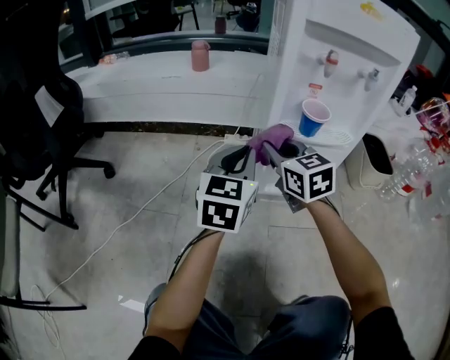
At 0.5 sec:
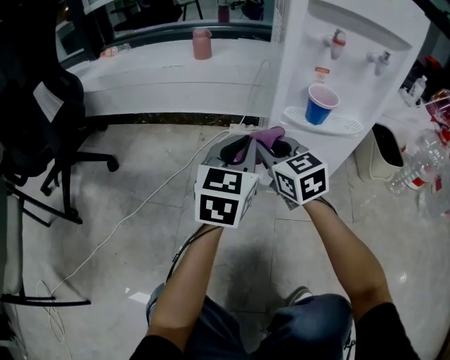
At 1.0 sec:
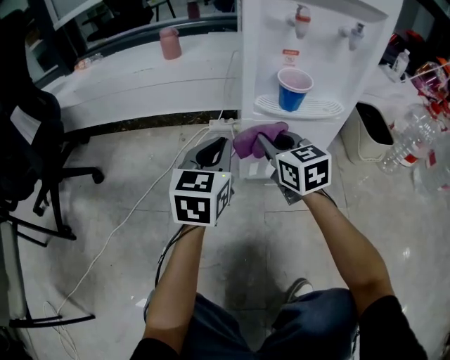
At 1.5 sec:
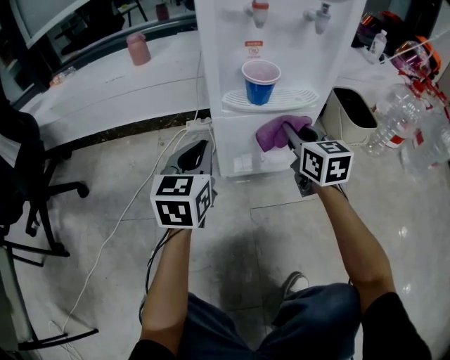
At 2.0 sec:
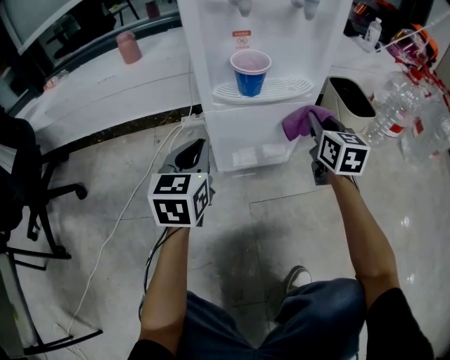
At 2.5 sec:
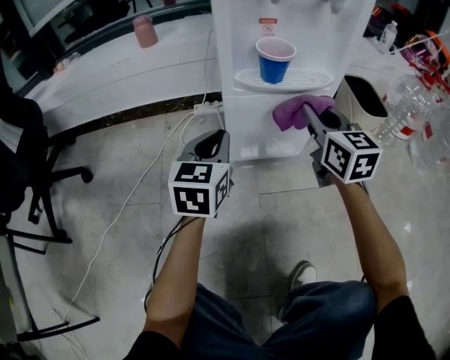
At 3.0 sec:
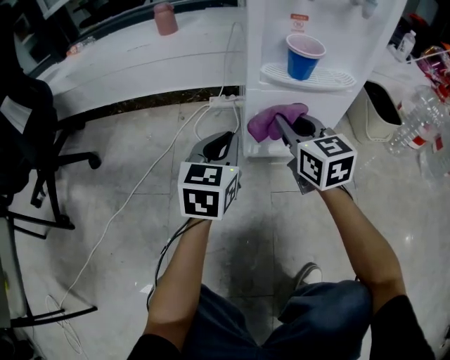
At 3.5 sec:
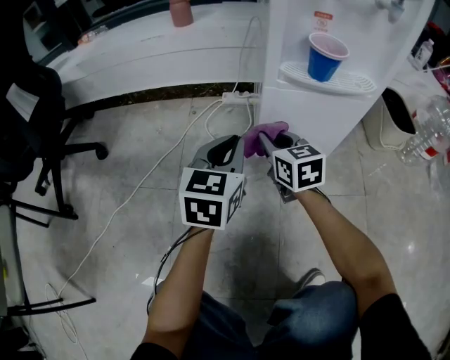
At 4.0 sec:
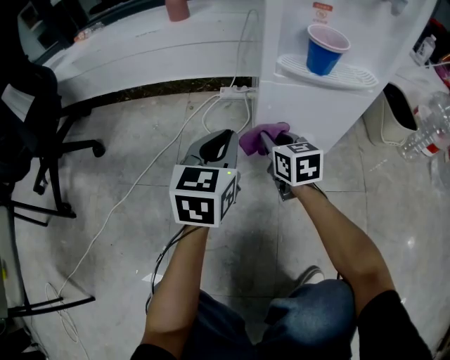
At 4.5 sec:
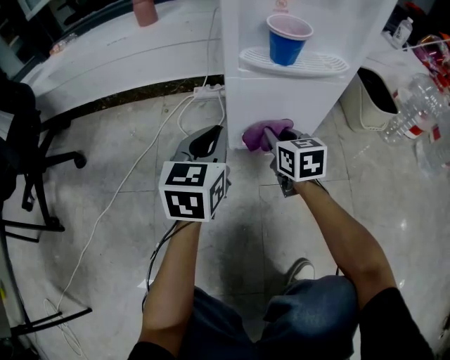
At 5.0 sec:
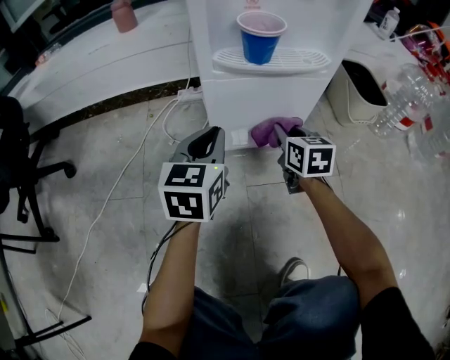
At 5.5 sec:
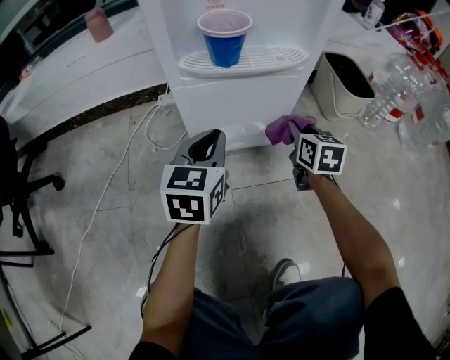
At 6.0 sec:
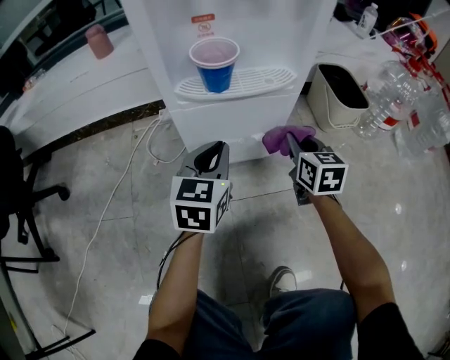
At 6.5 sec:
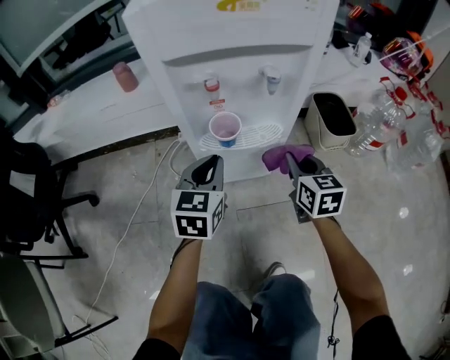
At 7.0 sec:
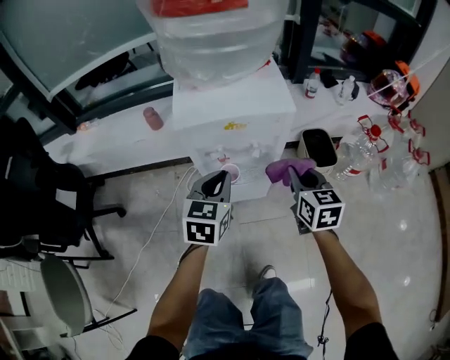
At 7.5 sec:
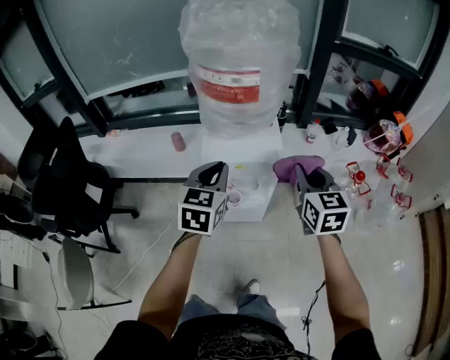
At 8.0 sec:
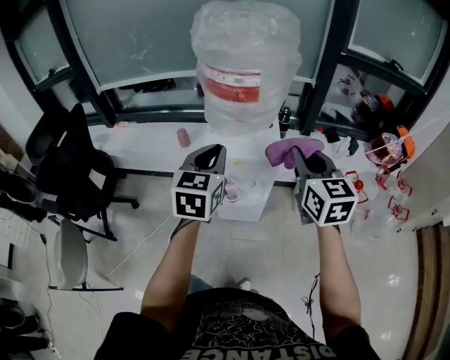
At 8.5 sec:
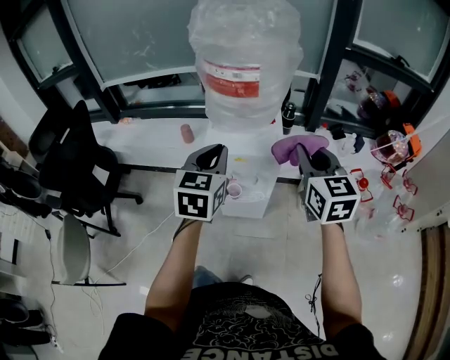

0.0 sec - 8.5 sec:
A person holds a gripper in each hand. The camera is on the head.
0.0 sec - 2.0 sec: The left gripper shifts approximately 10 cm downward; the right gripper shifts about 30 cm to the right, and swivels about 30 degrees.
2.0 sec - 4.0 sec: The right gripper goes about 30 cm to the left and downward, and turns by about 30 degrees. The left gripper moves to the left, about 5 cm.
4.0 sec - 6.5 sec: The left gripper moves upward and to the right, some 20 cm. Meanwhile the right gripper goes some 35 cm to the right and upward.
6.5 sec - 8.5 sec: Both grippers travel together upward, about 60 cm. The right gripper rotates about 20 degrees.

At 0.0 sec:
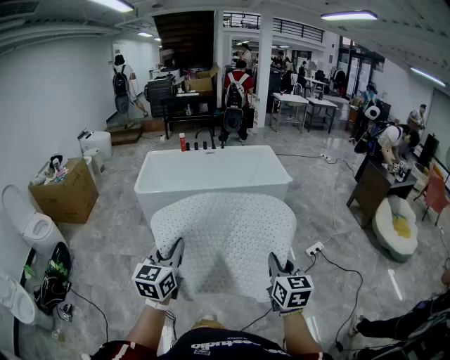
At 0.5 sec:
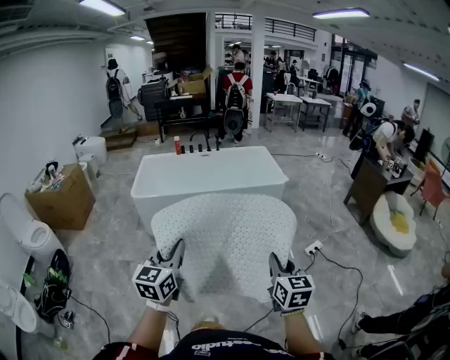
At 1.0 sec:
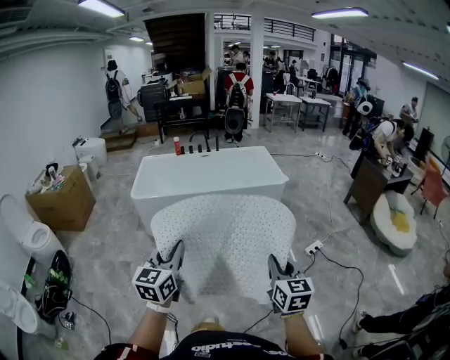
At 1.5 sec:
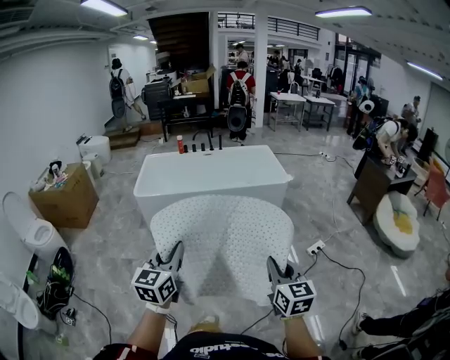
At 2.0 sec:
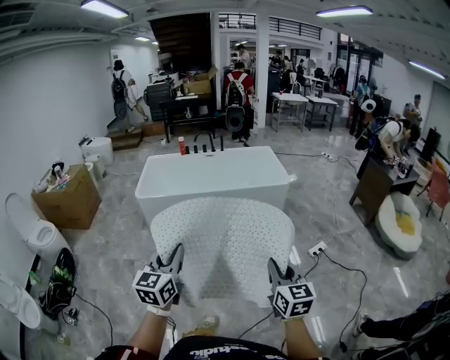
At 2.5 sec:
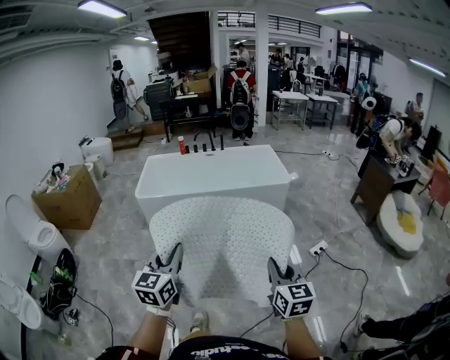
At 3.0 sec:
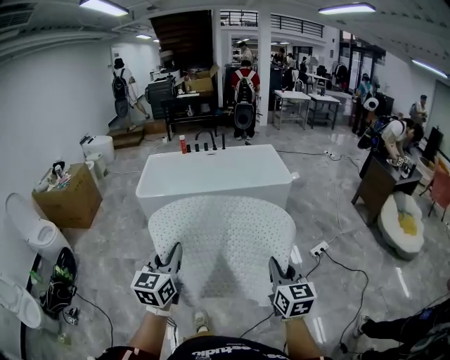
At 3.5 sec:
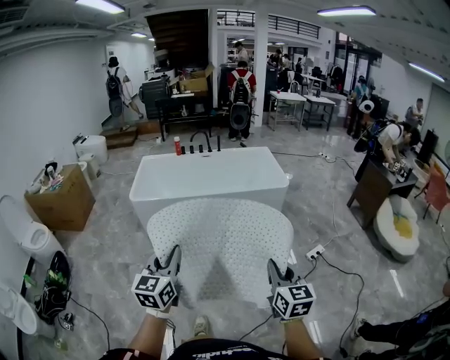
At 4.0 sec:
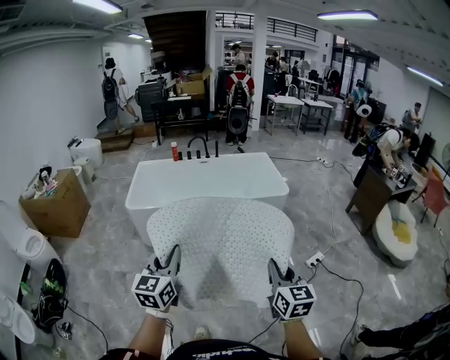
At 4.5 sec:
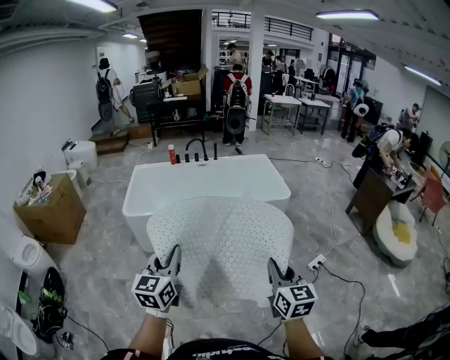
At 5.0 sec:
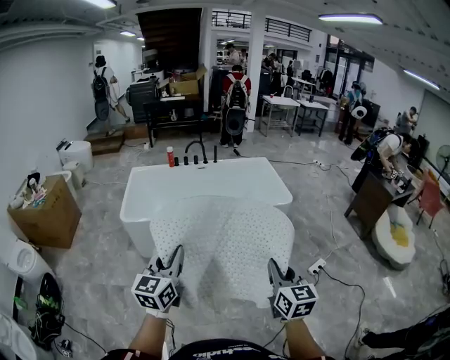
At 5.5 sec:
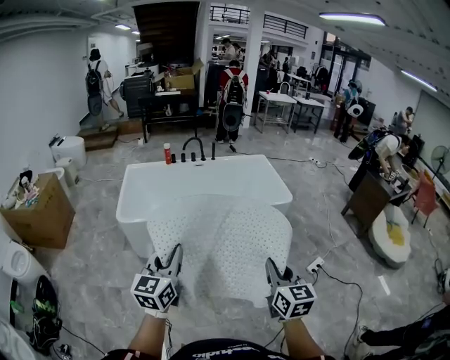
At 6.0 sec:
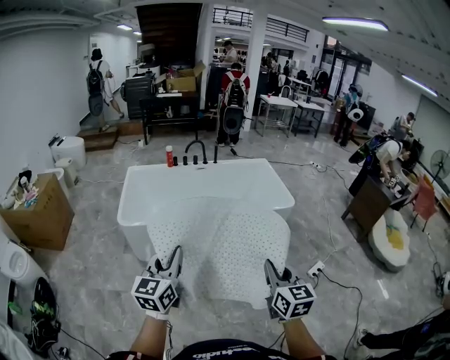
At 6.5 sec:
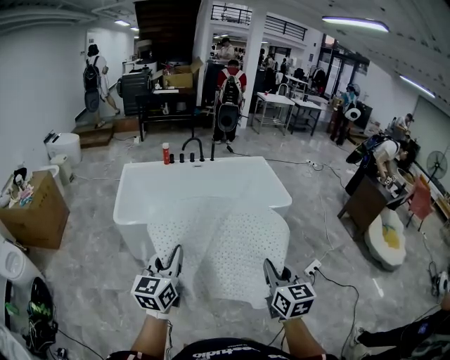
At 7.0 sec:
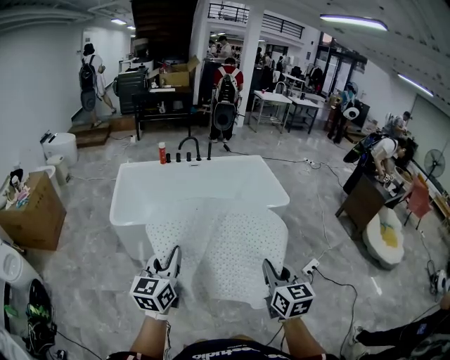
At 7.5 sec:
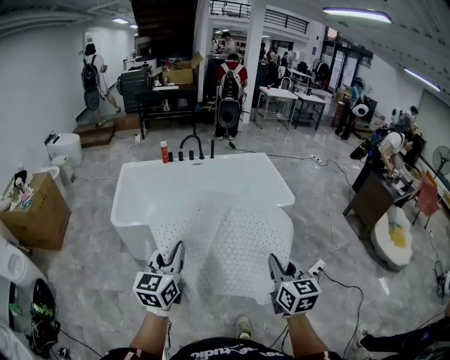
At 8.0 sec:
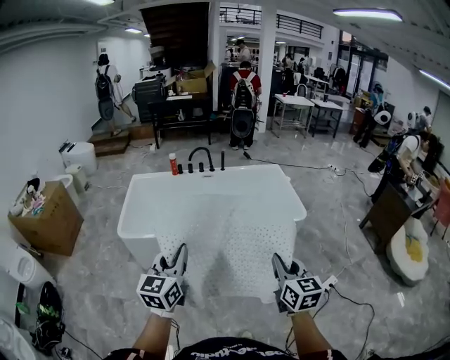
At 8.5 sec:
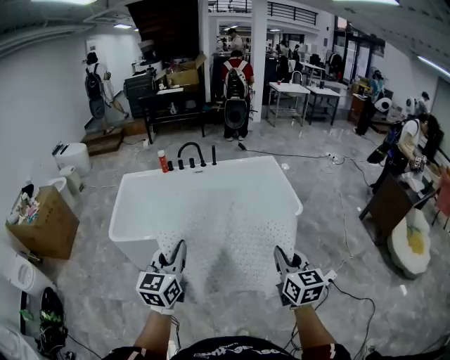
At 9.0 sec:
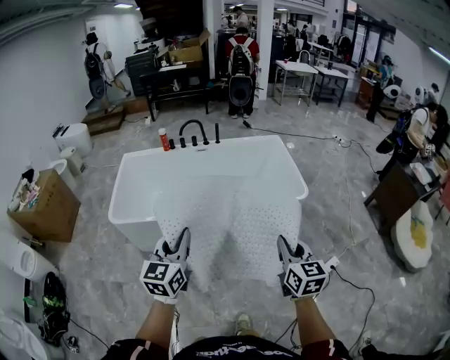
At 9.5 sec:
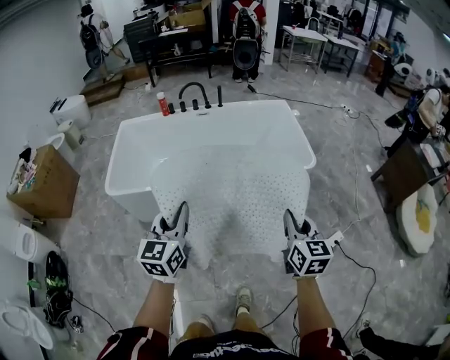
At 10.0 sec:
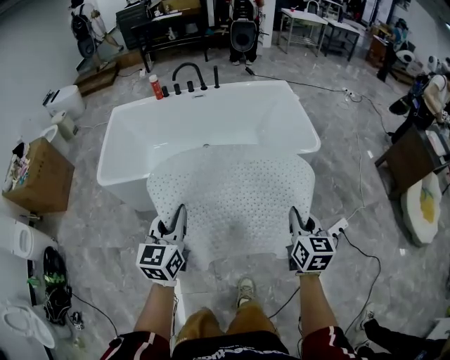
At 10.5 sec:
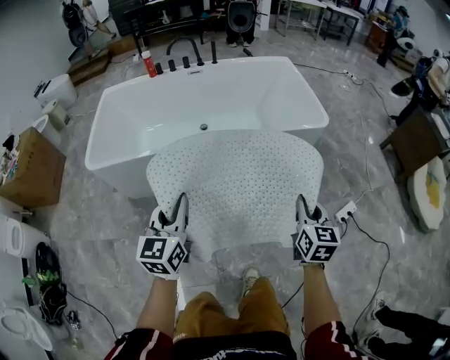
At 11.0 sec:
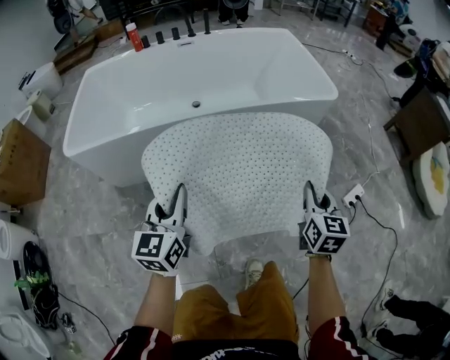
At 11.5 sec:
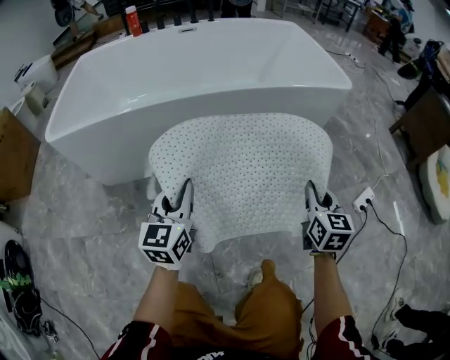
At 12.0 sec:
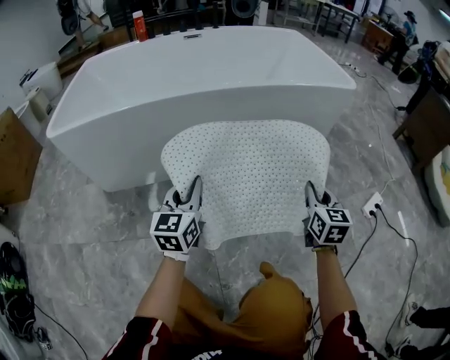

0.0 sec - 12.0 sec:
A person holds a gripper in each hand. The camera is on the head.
0.0 sec - 2.0 sec: There are only small adjustments of the grippers.
2.0 sec - 4.0 sec: Both grippers travel together forward, about 15 cm.
4.0 sec - 6.0 sec: The grippers both shift forward and to the left by roughly 25 cm.
6.0 sec - 8.0 sec: Both grippers travel together forward and to the right, some 20 cm.
8.0 sec - 10.0 sec: The left gripper travels downward and forward by some 20 cm, while the right gripper heads downward, forward and to the right, covering roughly 25 cm.
10.0 sec - 12.0 sec: Both grippers move downward, about 50 cm.

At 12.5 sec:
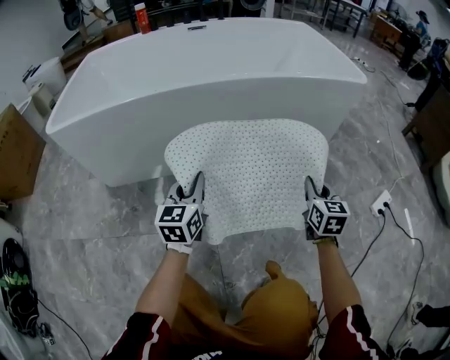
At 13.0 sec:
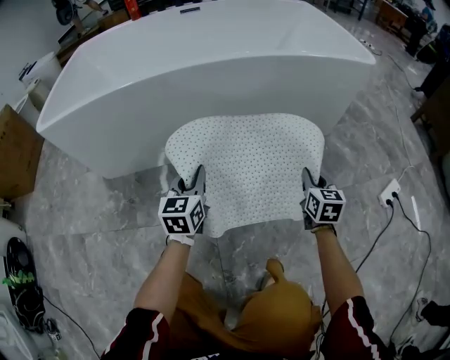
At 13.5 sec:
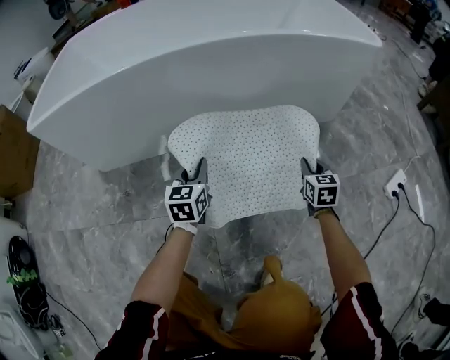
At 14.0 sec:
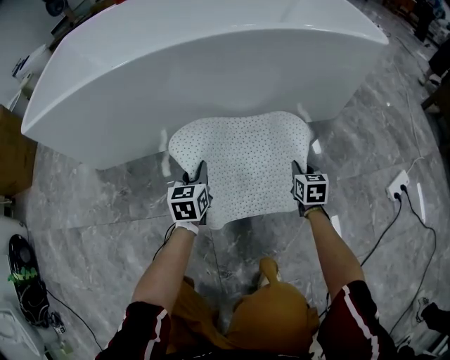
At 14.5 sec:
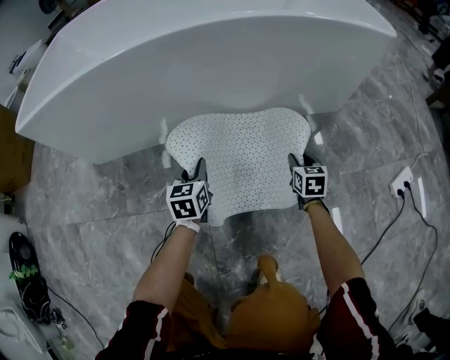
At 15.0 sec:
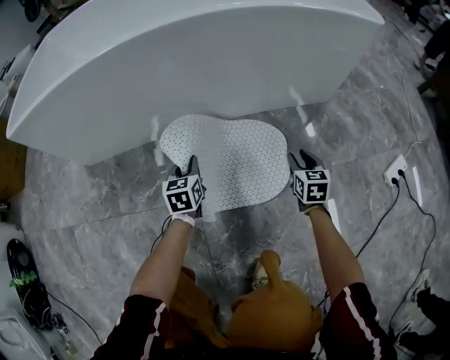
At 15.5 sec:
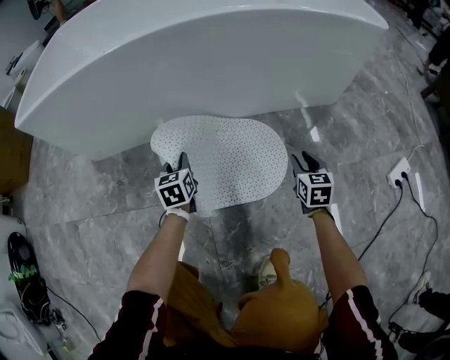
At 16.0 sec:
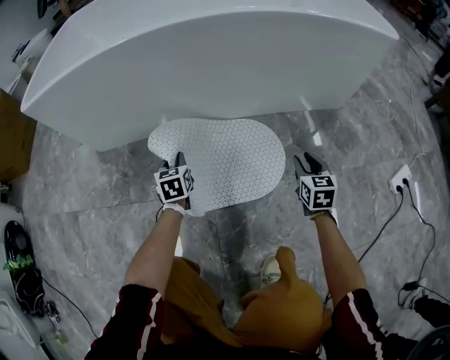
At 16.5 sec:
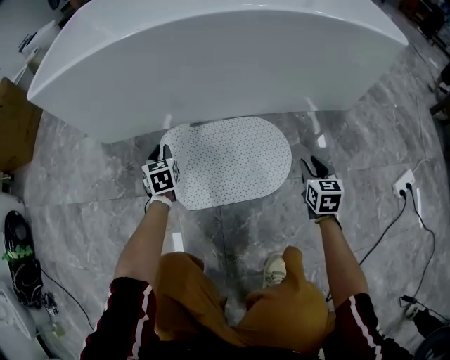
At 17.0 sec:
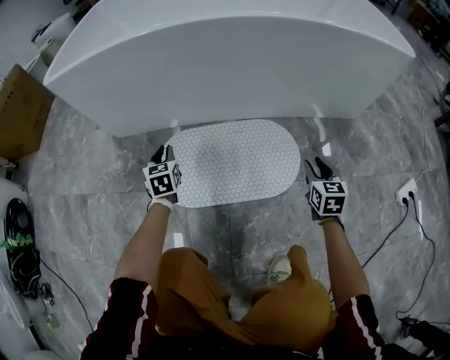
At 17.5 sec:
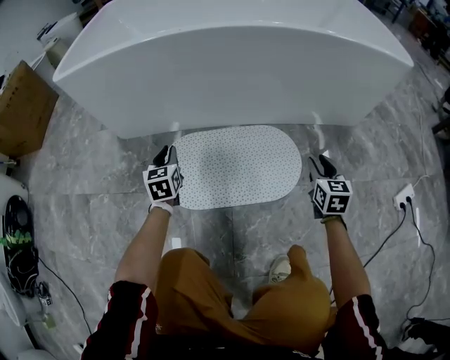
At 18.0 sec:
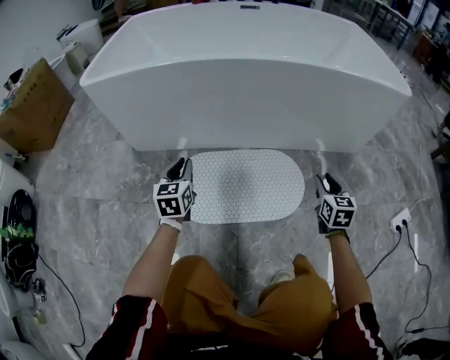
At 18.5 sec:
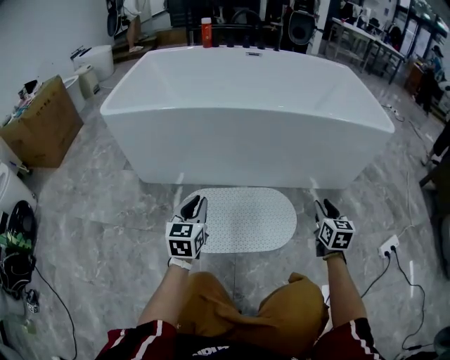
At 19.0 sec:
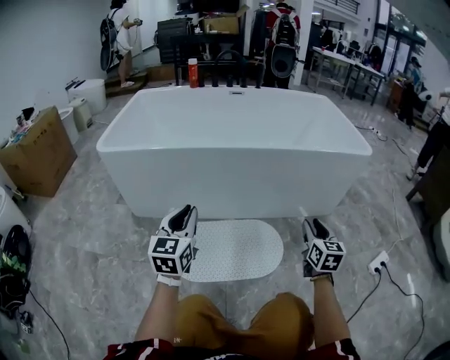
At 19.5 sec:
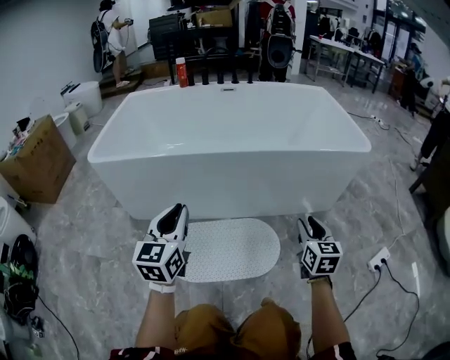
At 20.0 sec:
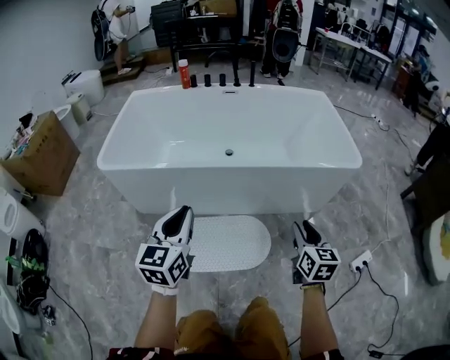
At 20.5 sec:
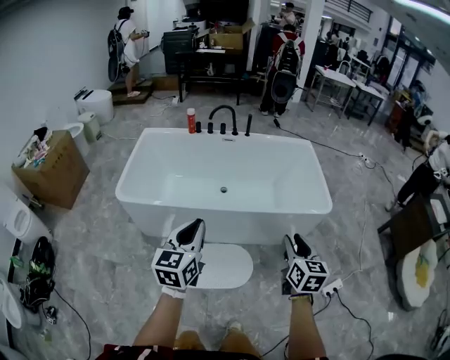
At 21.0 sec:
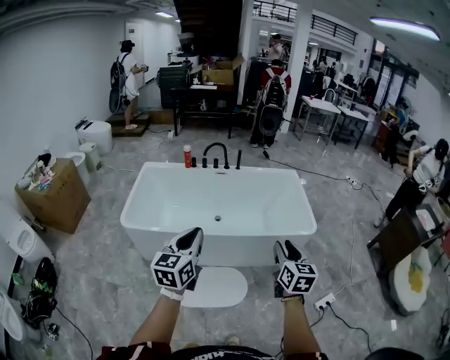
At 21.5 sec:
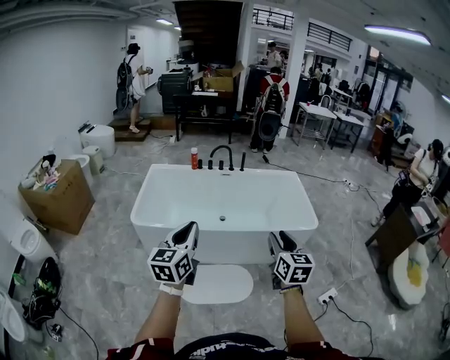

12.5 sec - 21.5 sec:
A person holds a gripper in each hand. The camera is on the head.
12.5 sec - 14.5 sec: The right gripper goes approximately 25 cm downward and forward, and opens. Meanwhile the left gripper heads downward, covering some 20 cm.
14.5 sec - 17.0 sec: The left gripper moves to the left, roughly 25 cm, and rotates approximately 20 degrees, while the right gripper moves to the left, backward and upward, roughly 15 cm.
17.0 sec - 19.5 sec: Both grippers travel together upward, about 35 cm. The left gripper rotates about 30 degrees.
19.5 sec - 21.5 sec: Both grippers travel together upward, about 60 cm.
